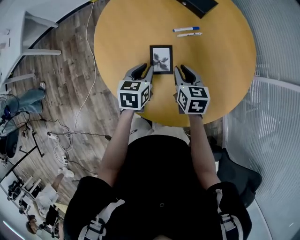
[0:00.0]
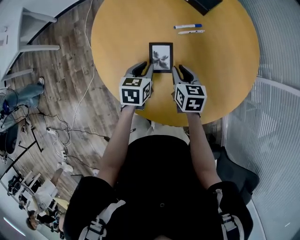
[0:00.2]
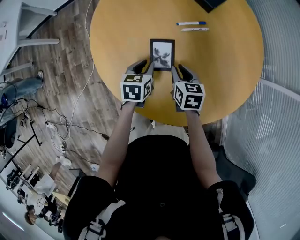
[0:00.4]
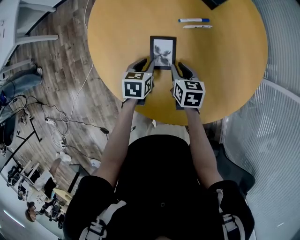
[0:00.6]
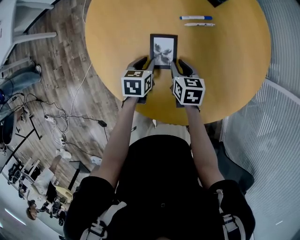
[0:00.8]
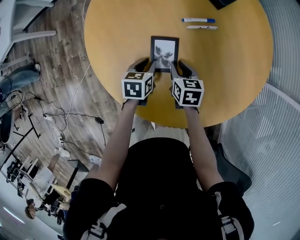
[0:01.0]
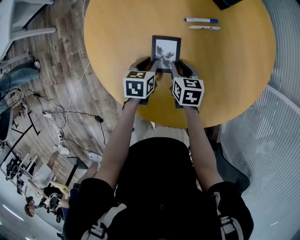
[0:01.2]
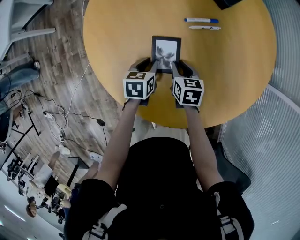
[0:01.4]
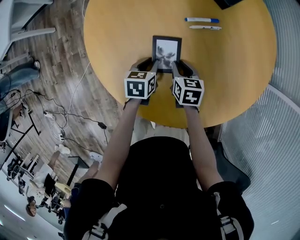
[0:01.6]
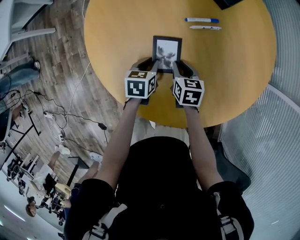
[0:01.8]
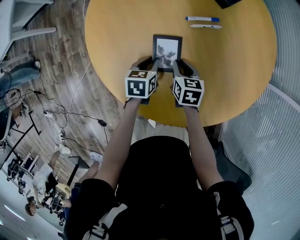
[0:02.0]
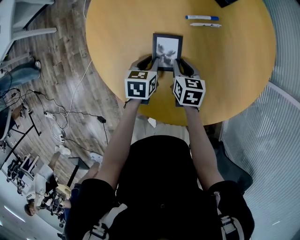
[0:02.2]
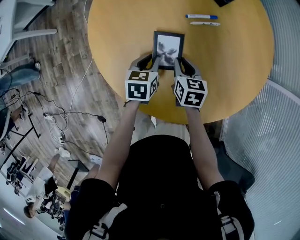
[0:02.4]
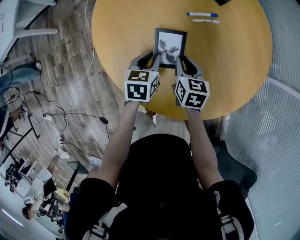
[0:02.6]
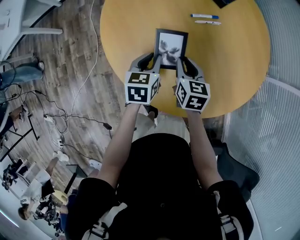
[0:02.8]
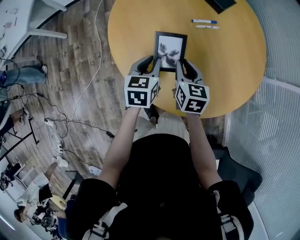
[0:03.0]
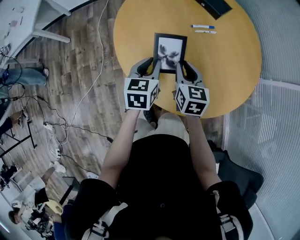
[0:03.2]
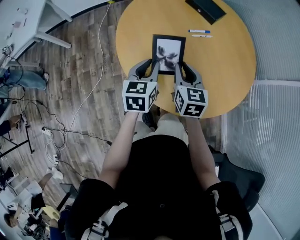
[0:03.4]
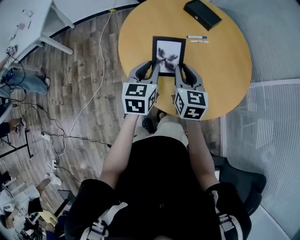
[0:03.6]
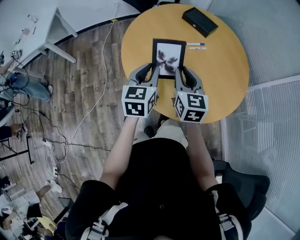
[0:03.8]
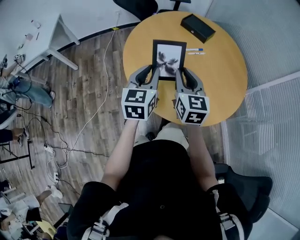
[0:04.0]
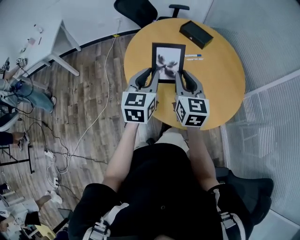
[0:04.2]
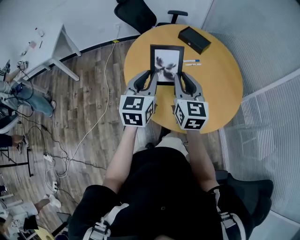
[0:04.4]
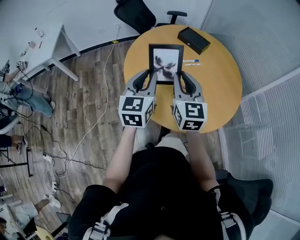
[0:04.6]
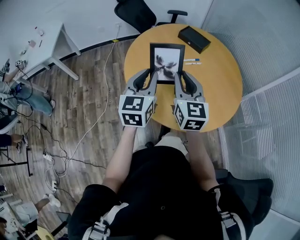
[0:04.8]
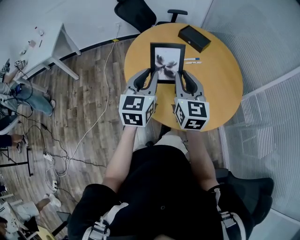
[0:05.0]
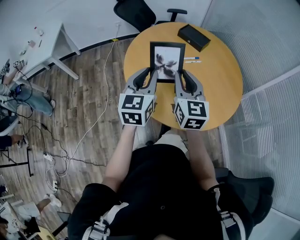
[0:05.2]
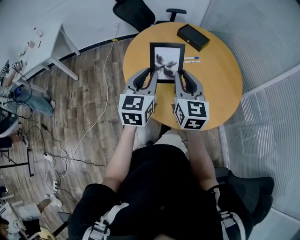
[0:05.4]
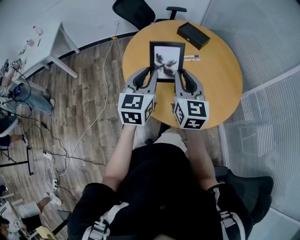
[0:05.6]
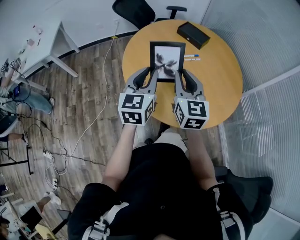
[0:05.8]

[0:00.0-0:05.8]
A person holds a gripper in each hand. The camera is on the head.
0:00.0 to 0:01.4: Both grippers move downward, approximately 15 cm.
0:01.4 to 0:02.8: The grippers both shift upward and backward by some 15 cm.
0:02.8 to 0:04.4: Both grippers travel together upward and backward, about 40 cm. The left gripper angles its fingers upward, by about 30 degrees; the right gripper angles its fingers upward, by approximately 30 degrees.
0:04.4 to 0:05.8: There are only small adjustments of the grippers.

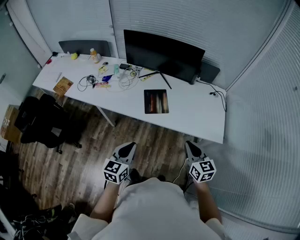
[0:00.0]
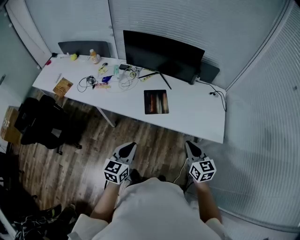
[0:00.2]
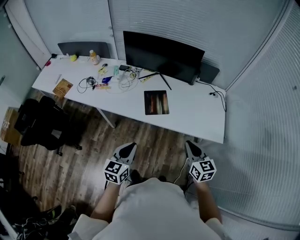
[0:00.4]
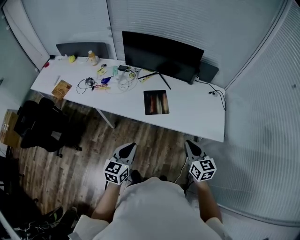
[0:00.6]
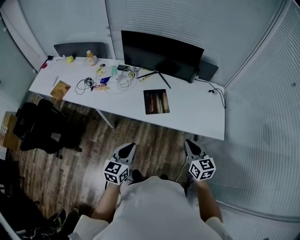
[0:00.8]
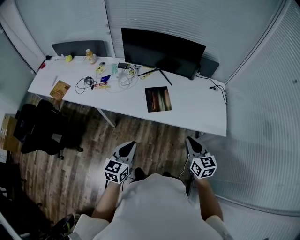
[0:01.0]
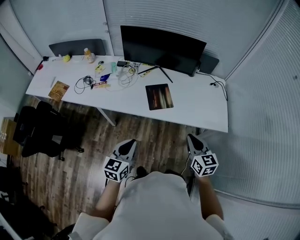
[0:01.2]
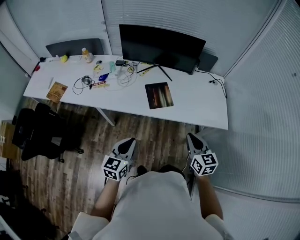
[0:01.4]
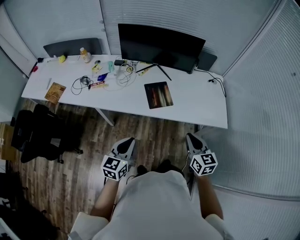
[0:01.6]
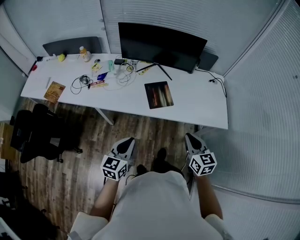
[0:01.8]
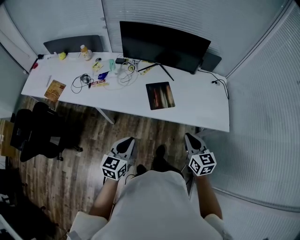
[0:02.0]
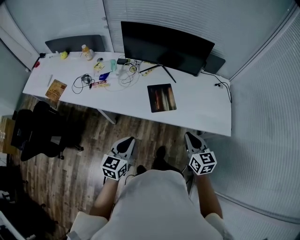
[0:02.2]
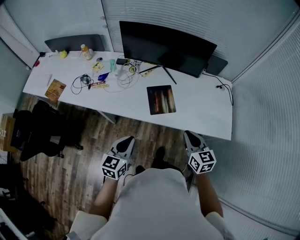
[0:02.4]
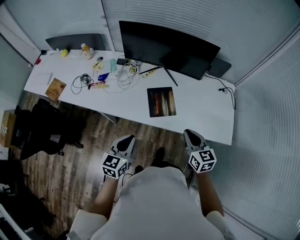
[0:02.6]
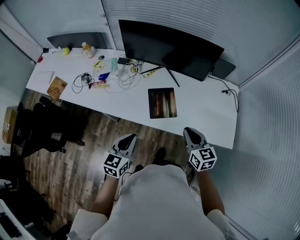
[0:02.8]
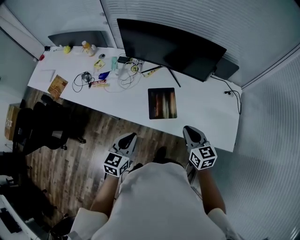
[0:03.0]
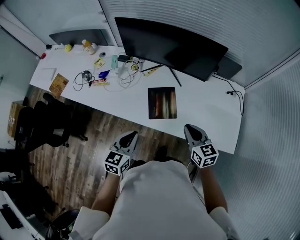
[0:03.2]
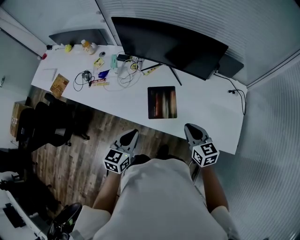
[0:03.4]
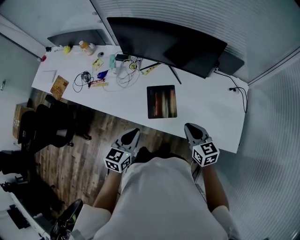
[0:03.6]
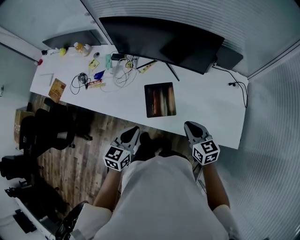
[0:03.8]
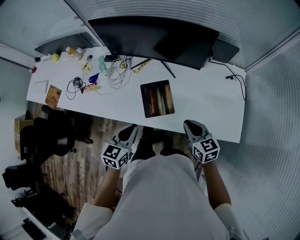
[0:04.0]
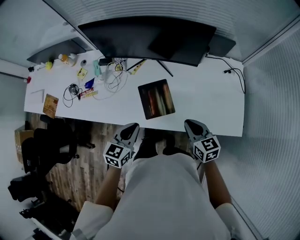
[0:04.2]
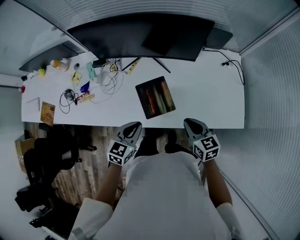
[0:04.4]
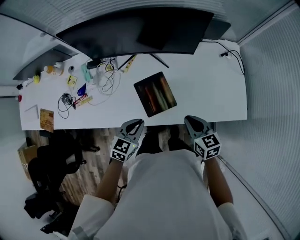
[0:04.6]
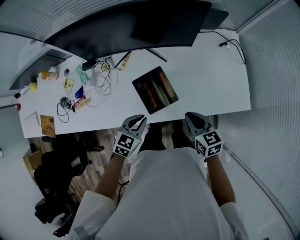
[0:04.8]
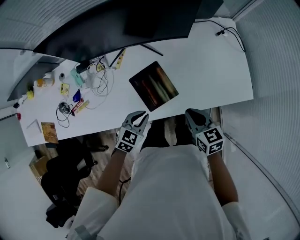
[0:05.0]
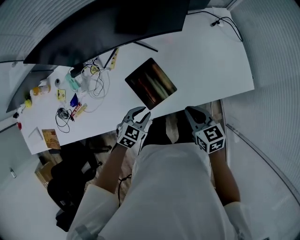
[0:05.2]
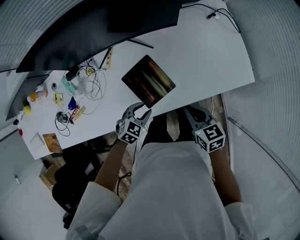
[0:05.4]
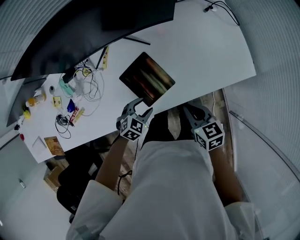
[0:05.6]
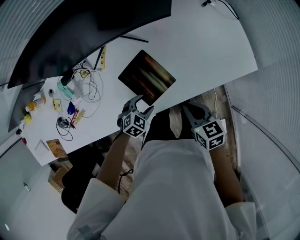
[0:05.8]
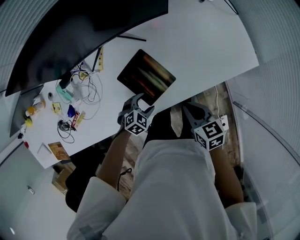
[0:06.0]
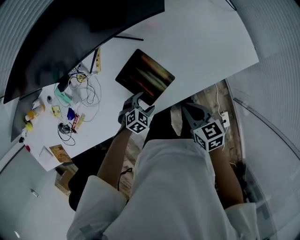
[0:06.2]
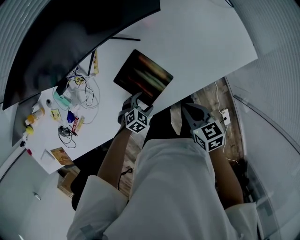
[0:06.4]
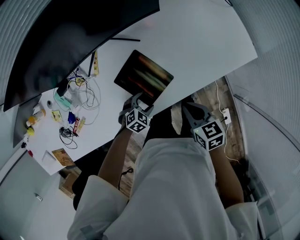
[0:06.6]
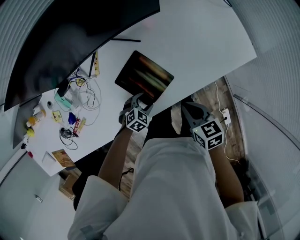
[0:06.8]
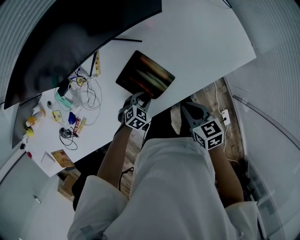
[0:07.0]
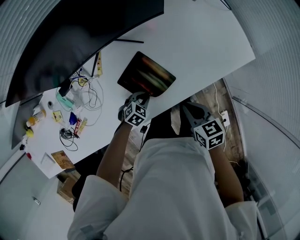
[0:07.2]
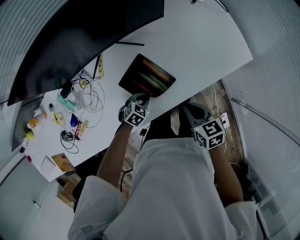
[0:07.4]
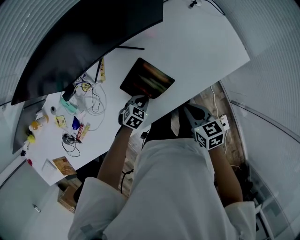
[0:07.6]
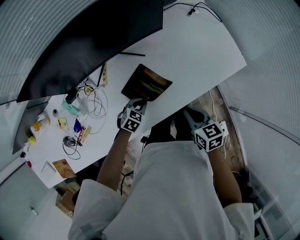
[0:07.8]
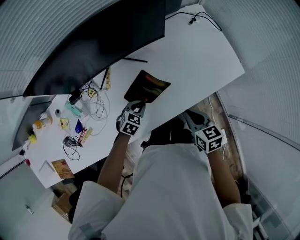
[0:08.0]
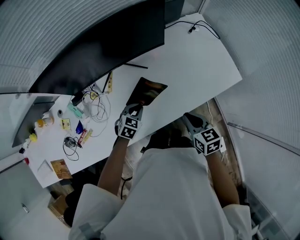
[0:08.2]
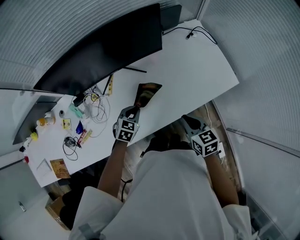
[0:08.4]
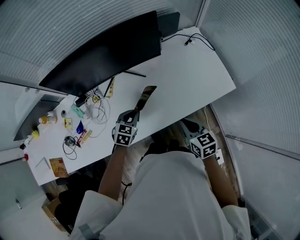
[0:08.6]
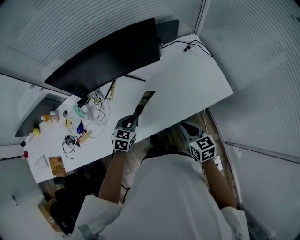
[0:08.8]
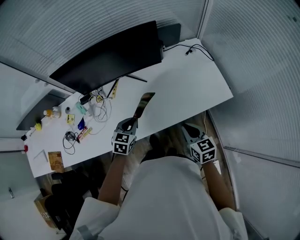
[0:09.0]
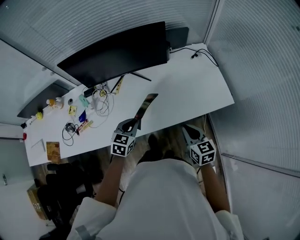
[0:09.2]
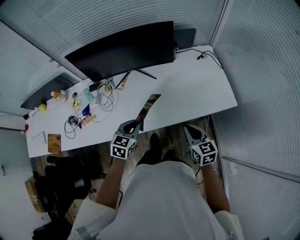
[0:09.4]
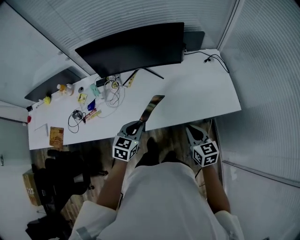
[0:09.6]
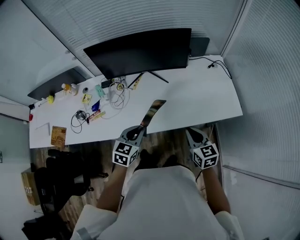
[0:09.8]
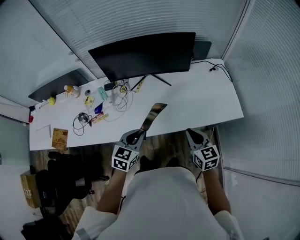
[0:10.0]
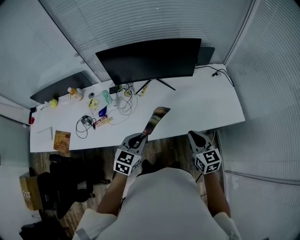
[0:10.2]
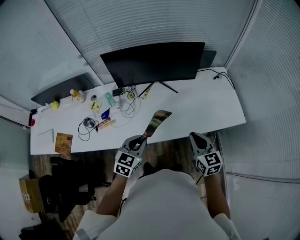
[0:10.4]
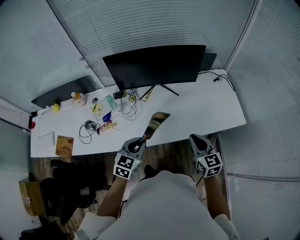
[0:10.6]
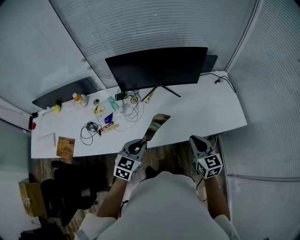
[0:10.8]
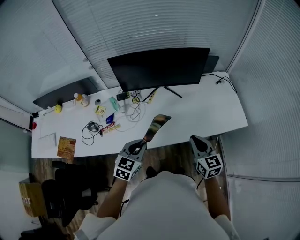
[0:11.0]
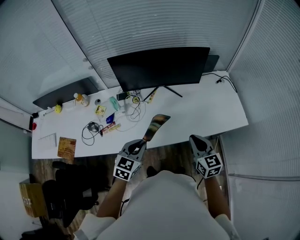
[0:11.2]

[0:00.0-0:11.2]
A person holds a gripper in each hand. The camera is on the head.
0:00.0 to 0:01.6: The grippers both shift to the left by roughly 10 cm.
0:01.6 to 0:03.2: The left gripper shifts about 20 cm forward and to the right, while the right gripper is displaced forward by about 20 cm.
0:03.2 to 0:04.8: The right gripper is displaced downward by about 10 cm, and changes its angle by approximately 20 degrees, while the left gripper is displaced downward by roughly 15 cm, and rotates about 40 degrees.
0:04.8 to 0:06.4: The left gripper moves downward, some 20 cm, turns by approximately 50 degrees, and opens its fingers. Meanwhile the right gripper is displaced downward by approximately 5 cm.
0:06.4 to 0:08.0: The right gripper changes place by some 5 cm, while the left gripper moves upward and forward, about 10 cm, and closes.
0:08.0 to 0:09.6: The left gripper shifts roughly 25 cm upward and backward, and changes its angle by about 40 degrees, while the right gripper is displaced upward and backward by some 10 cm, and swivels about 20 degrees.
0:09.6 to 0:11.2: The left gripper shifts roughly 15 cm to the left; the right gripper is displaced to the left and upward by approximately 15 cm.

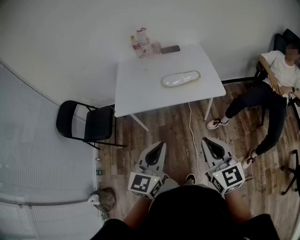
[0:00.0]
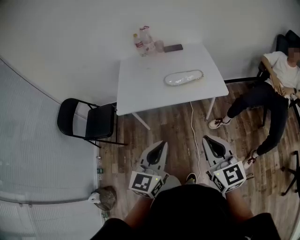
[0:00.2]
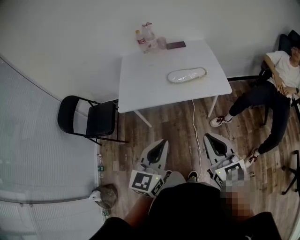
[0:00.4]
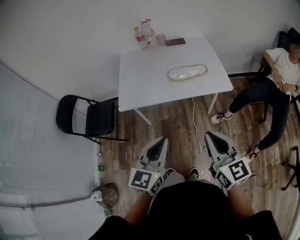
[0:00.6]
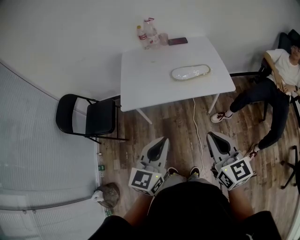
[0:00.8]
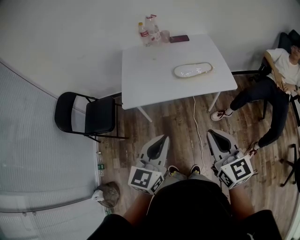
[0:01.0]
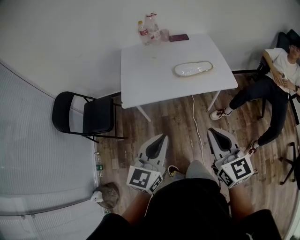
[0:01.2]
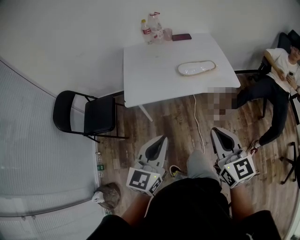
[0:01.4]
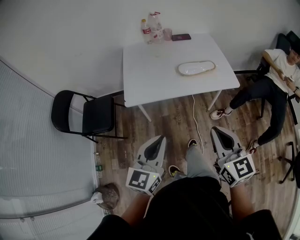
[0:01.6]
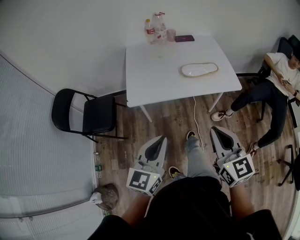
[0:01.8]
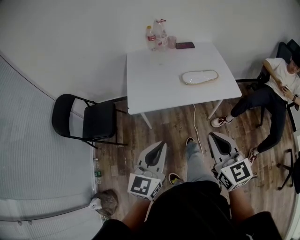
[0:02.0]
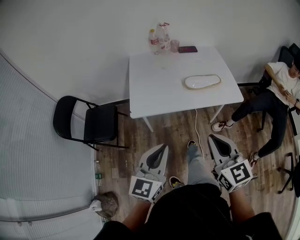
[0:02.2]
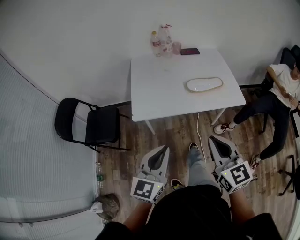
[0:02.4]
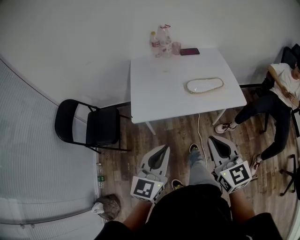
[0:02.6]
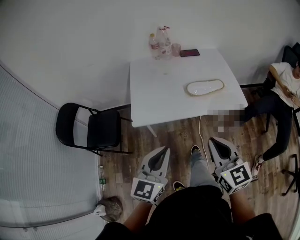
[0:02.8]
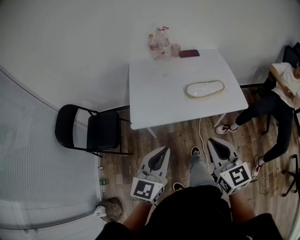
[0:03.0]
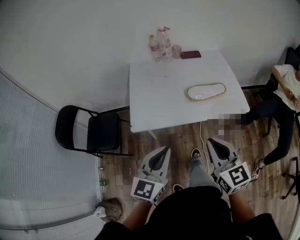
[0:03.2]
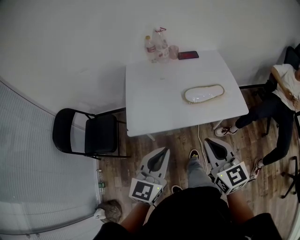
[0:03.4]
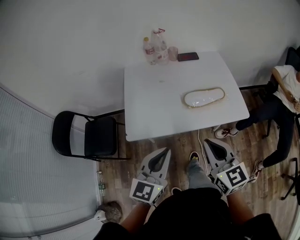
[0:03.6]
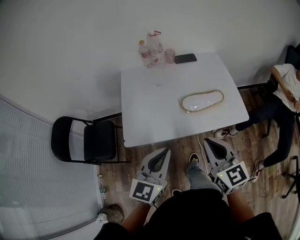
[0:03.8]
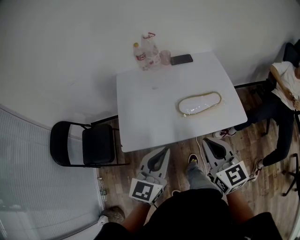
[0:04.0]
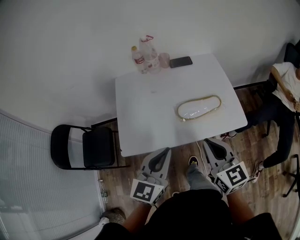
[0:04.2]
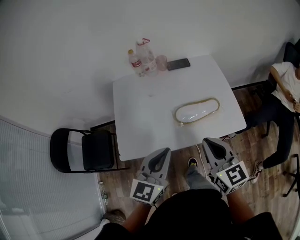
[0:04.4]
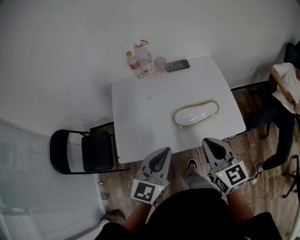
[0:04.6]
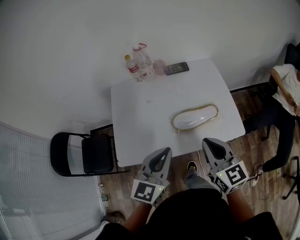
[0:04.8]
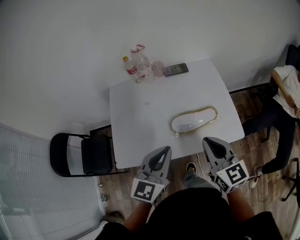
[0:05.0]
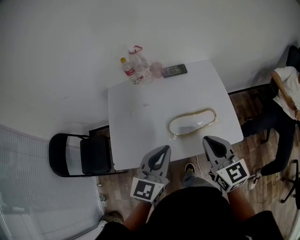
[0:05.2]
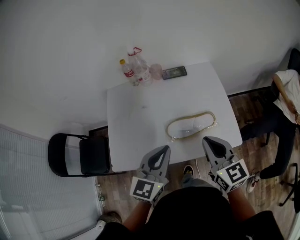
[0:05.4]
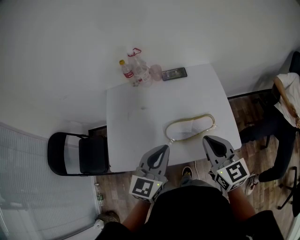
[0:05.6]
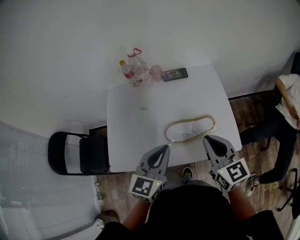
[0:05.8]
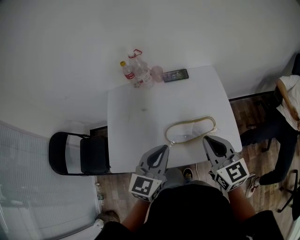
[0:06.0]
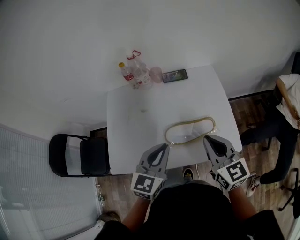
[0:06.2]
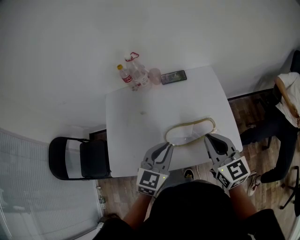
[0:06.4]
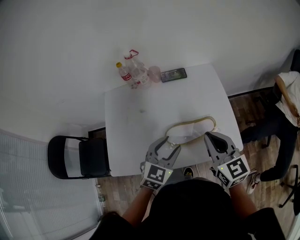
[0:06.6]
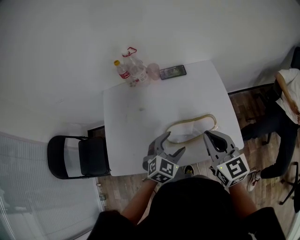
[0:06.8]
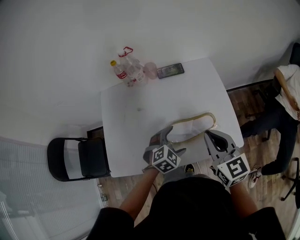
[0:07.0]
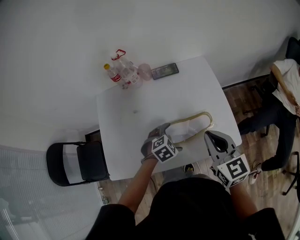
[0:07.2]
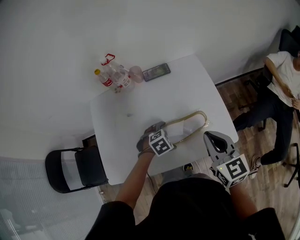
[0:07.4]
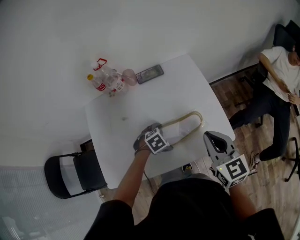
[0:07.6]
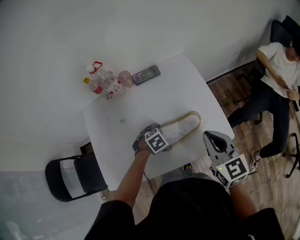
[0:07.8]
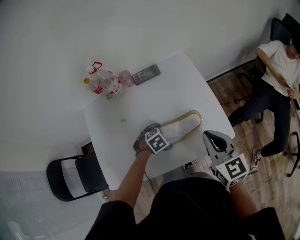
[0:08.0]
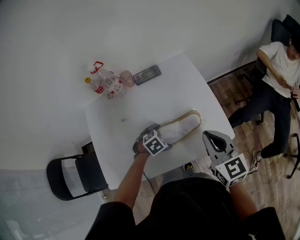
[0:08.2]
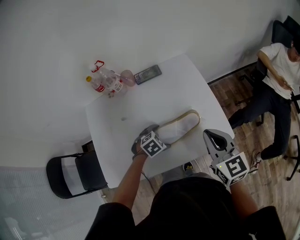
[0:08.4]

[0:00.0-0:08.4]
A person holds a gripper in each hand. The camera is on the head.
0:00.0 to 0:01.4: The grippers both shift to the left by roughly 15 cm.
0:01.4 to 0:02.8: Both grippers travel together forward, approximately 5 cm.
0:02.8 to 0:04.2: The left gripper travels forward and to the right by roughly 20 cm. The right gripper goes roughly 20 cm forward.
0:04.2 to 0:05.6: The two grippers go about 15 cm forward and to the right.
0:05.6 to 0:07.0: The left gripper travels downward by approximately 20 cm, tips its fingers downward by roughly 40 degrees, and opens its fingers. Meanwhile the right gripper ends up roughly 5 cm from where it was.
0:07.0 to 0:08.4: The right gripper shifts by roughly 5 cm; the left gripper moves downward, some 5 cm, and swivels about 20 degrees.
